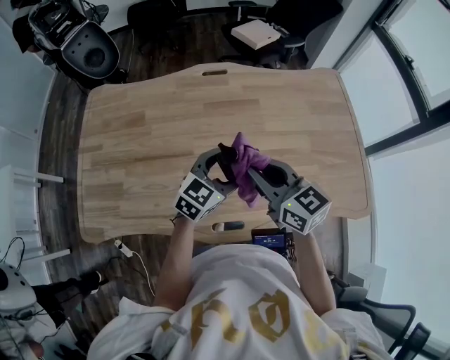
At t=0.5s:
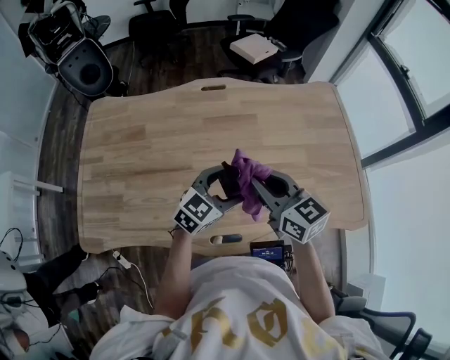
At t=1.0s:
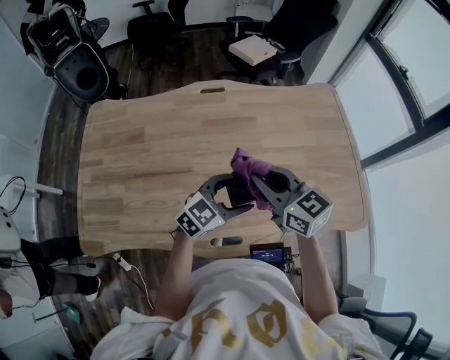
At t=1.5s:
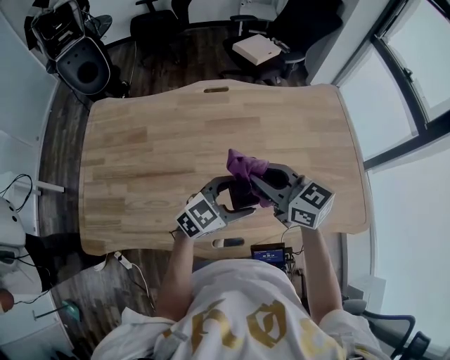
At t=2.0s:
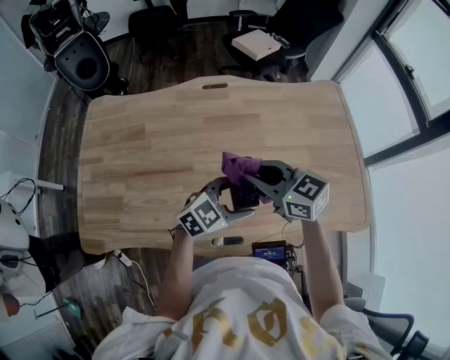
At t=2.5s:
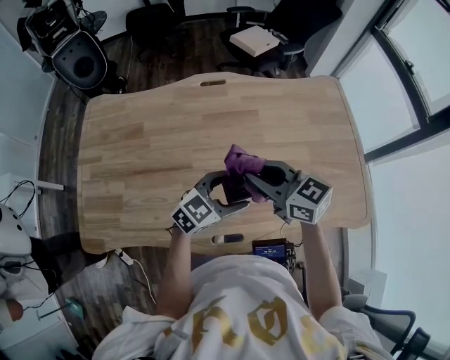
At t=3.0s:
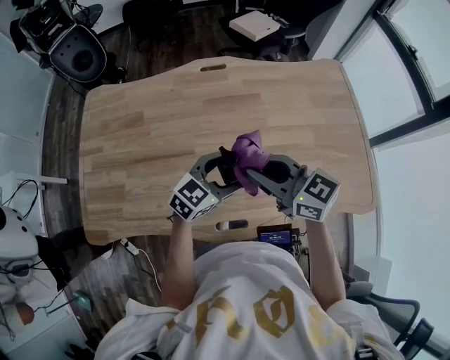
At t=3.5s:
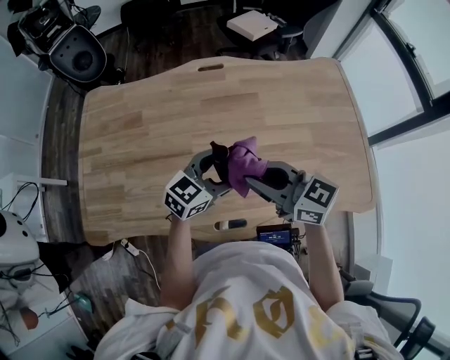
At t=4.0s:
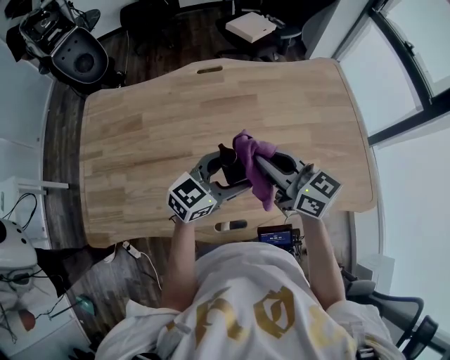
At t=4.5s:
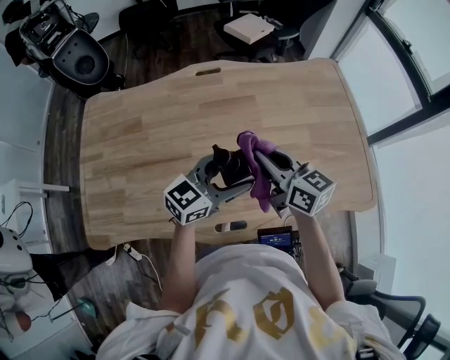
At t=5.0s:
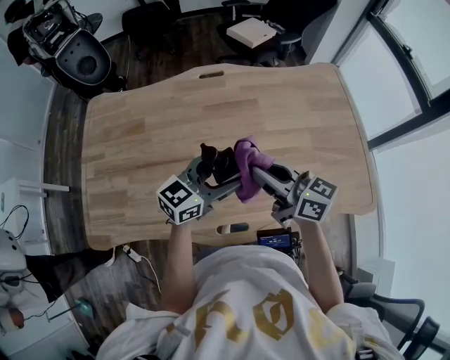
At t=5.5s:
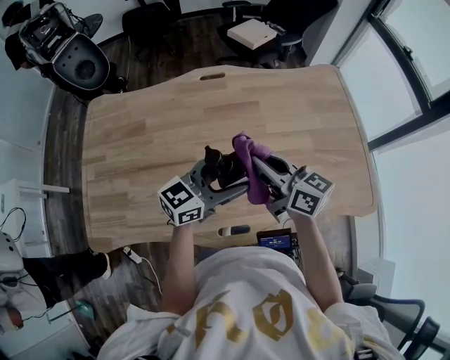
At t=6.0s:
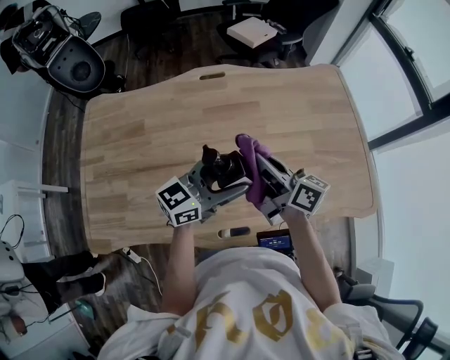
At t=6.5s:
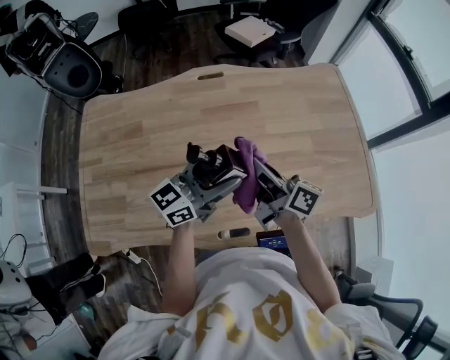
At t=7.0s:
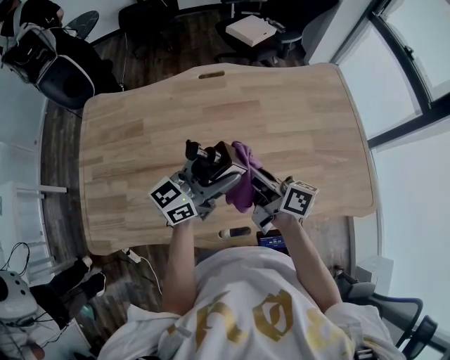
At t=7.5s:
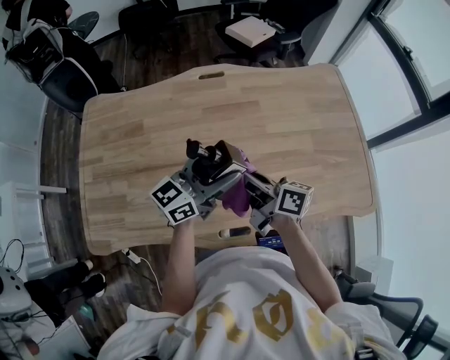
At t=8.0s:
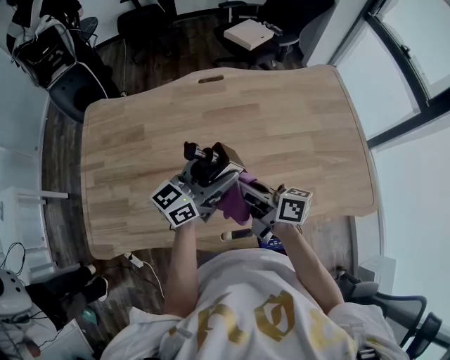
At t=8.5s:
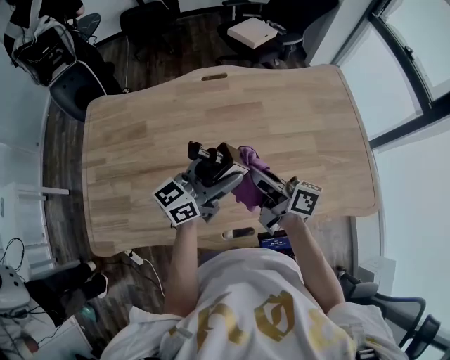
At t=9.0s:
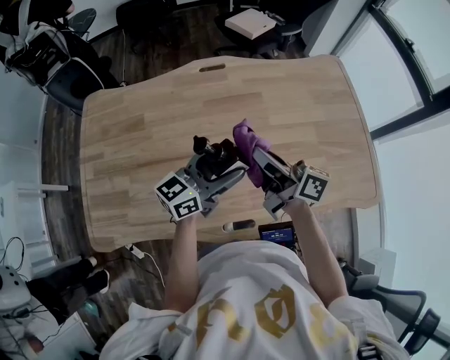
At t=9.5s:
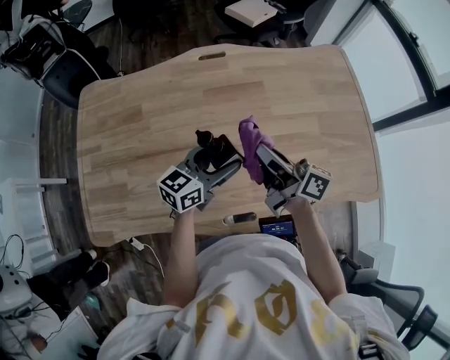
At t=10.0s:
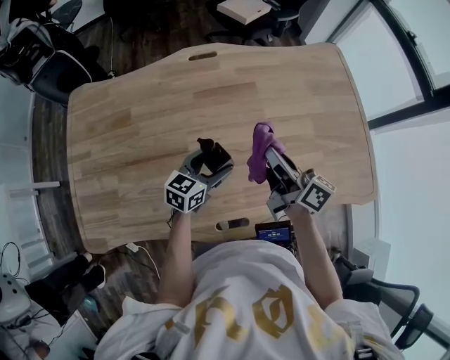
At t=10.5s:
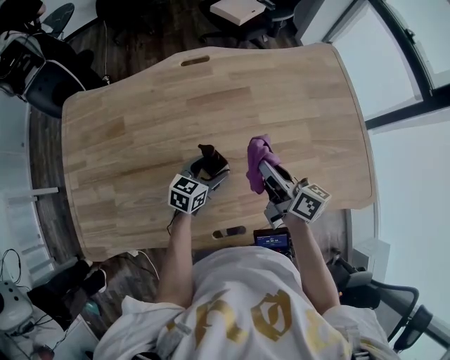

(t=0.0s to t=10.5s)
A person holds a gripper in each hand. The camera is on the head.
t=0.0s - t=2.0s: The left gripper moves approximately 5 cm, and rotates roughly 20 degrees.
t=2.0s - t=4.0s: The right gripper changes its angle by about 20 degrees.
t=4.0s - t=6.5s: The right gripper turns by some 40 degrees. The left gripper heads to the left, covering approximately 5 cm, and changes its angle by approximately 30 degrees.
t=8.5s - t=10.5s: The right gripper is displaced to the right and downward by roughly 10 cm, while the left gripper heads downward, covering some 25 cm, and tips its fingers downward by some 40 degrees.

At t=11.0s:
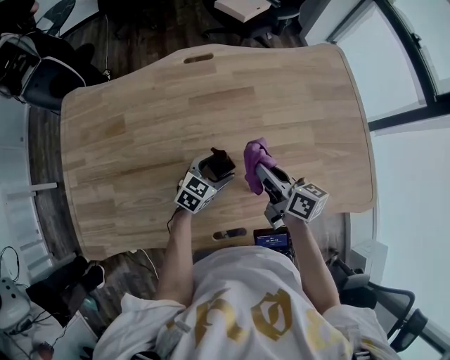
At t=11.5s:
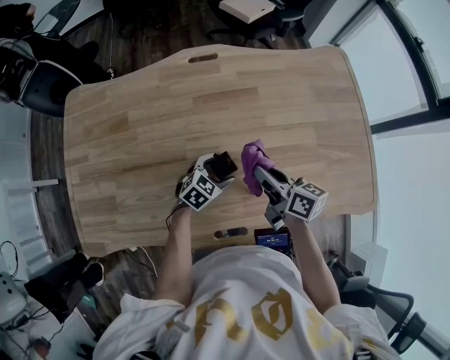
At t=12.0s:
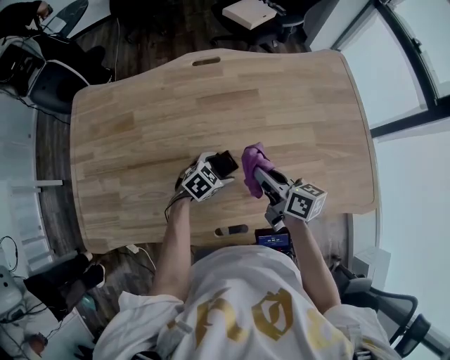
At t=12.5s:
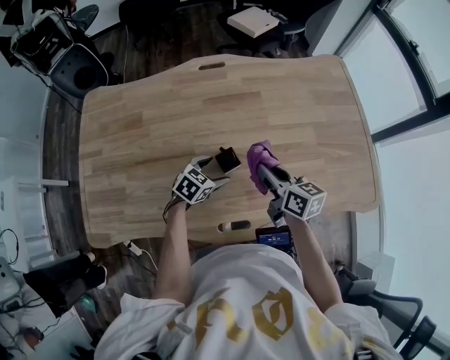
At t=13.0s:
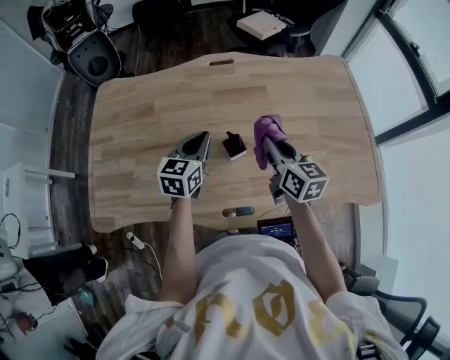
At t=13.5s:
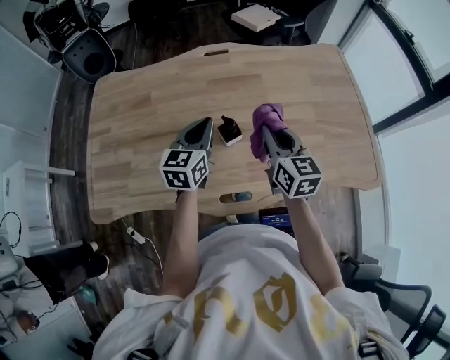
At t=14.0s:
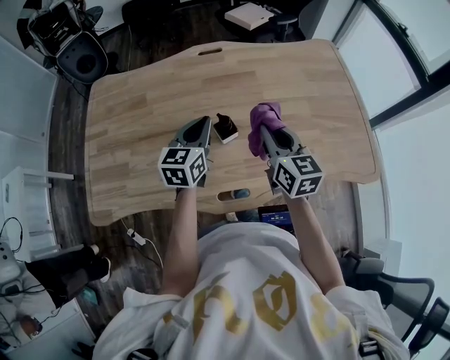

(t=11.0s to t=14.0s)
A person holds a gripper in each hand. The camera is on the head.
t=11.0s - t=12.5s: The left gripper ends up some 5 cm from where it was.
t=12.5s - t=14.0s: The right gripper is displaced upward by approximately 10 cm, and rotates some 30 degrees; the left gripper heads upward, covering approximately 20 cm, angles its fingers upward, by about 30 degrees, and closes up.

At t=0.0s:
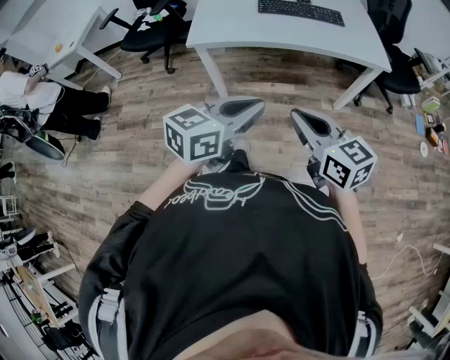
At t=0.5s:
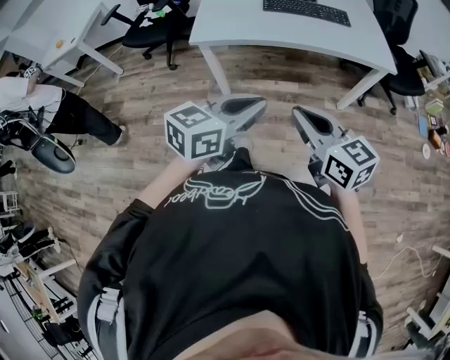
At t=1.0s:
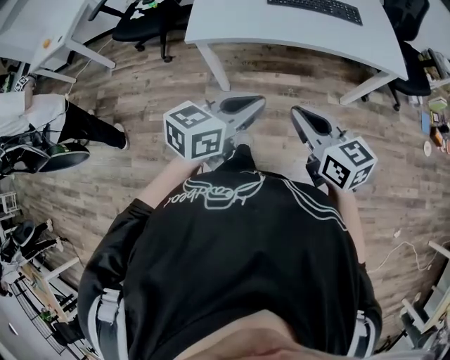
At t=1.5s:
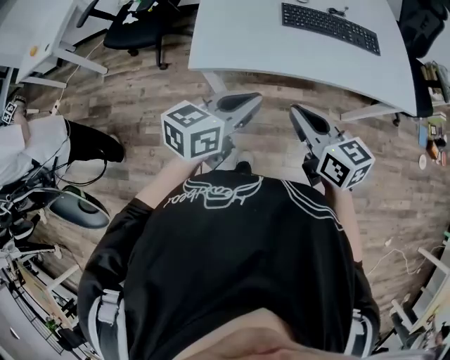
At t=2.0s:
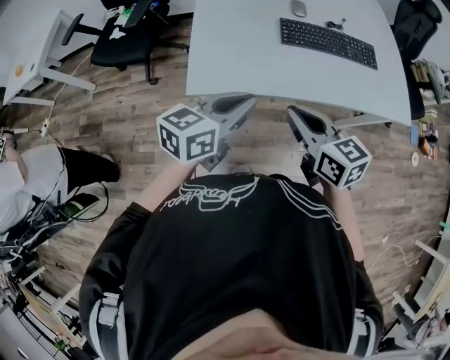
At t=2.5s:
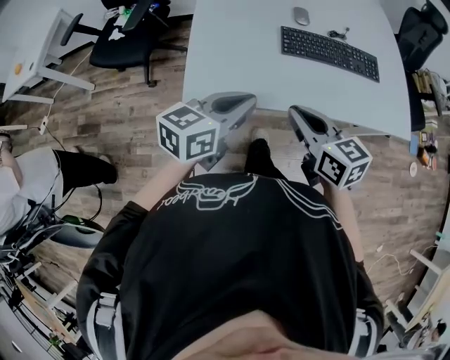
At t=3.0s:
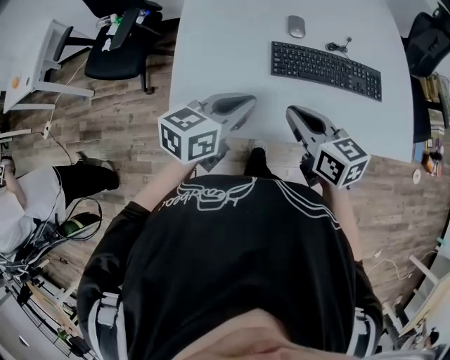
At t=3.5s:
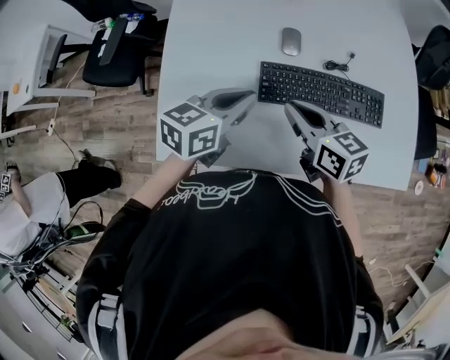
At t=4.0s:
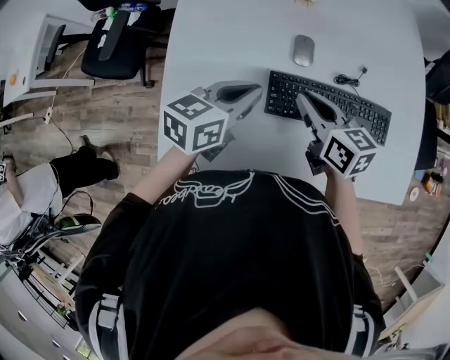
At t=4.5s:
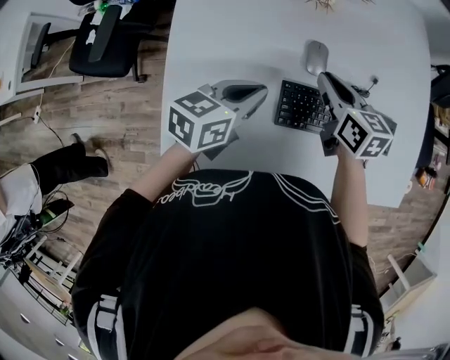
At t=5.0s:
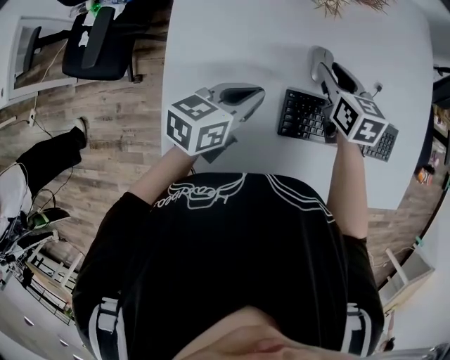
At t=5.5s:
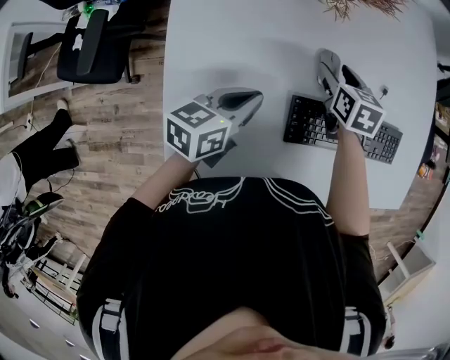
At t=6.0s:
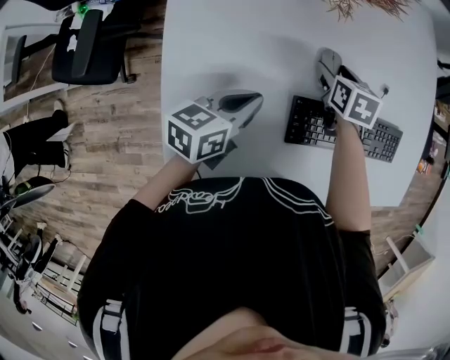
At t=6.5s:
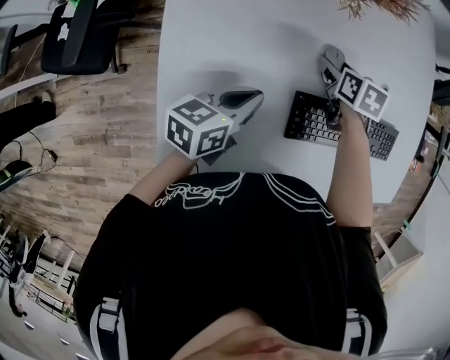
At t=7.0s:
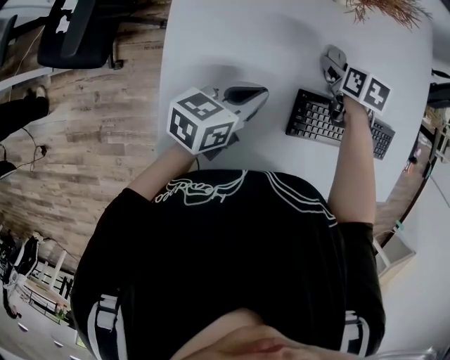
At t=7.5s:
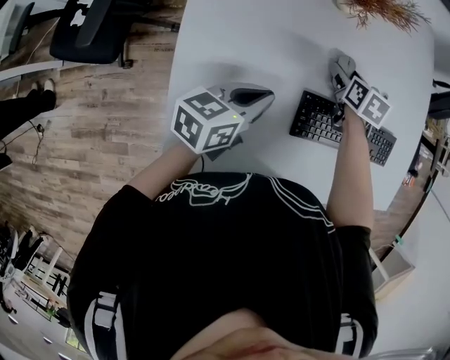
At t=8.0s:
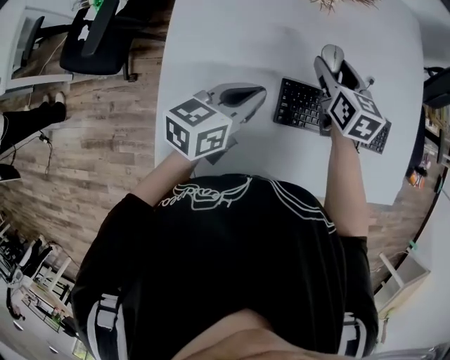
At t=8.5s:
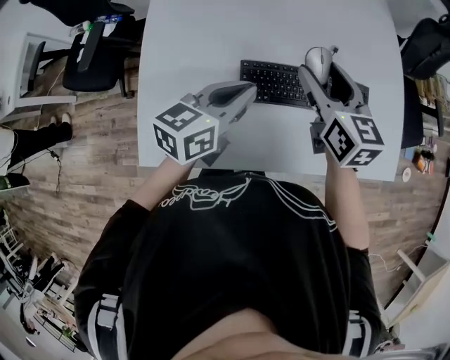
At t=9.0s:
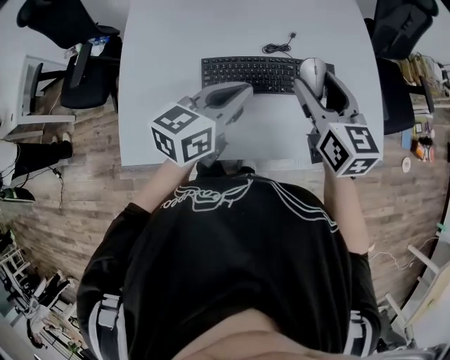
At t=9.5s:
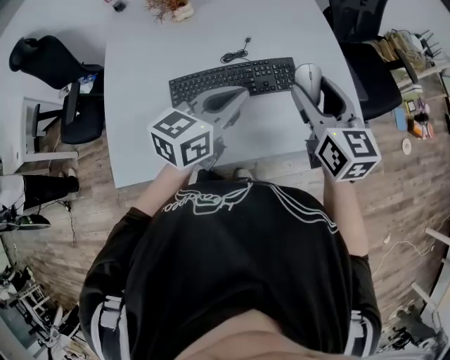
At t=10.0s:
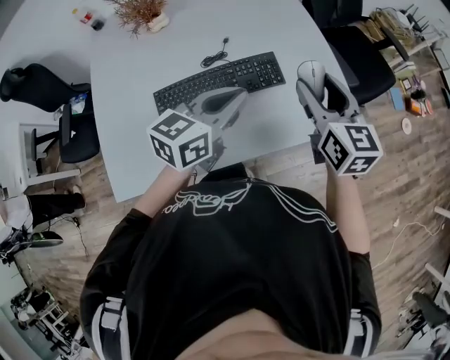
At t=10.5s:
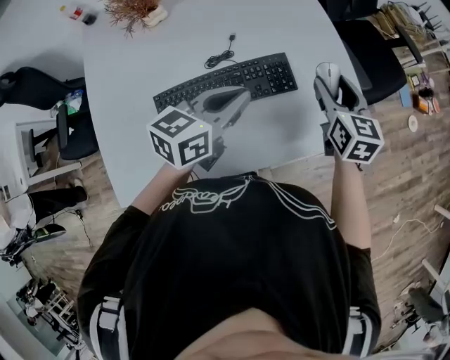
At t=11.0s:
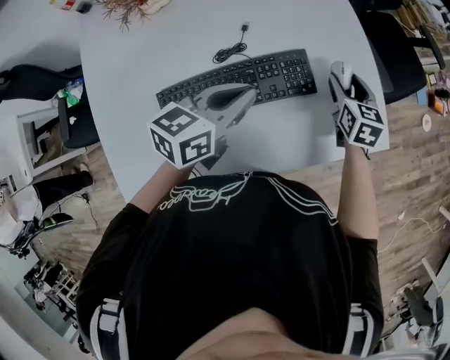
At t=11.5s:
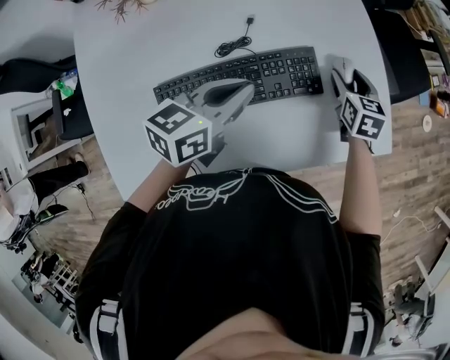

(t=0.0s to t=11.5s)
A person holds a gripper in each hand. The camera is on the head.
t=0.0s - t=2.0s: Both grippers move forward and to the left, approximately 40 cm.
t=2.0s - t=4.0s: Both grippers move forward, about 35 cm.
t=4.0s - t=6.0s: The right gripper travels forward and downward by some 20 cm, rotates roughly 40 degrees, and opens its fingers, while the left gripper moves downward and to the left, approximately 10 cm.
t=6.0s - t=7.5s: The grippers move only a little.
t=7.5s - t=9.5s: The right gripper goes some 50 cm to the right, upward and backward, and points its fingers approximately 40 degrees further upward, while the left gripper heads to the right and upward, covering some 40 cm, and turns by some 20 degrees.
t=9.5s - t=11.5s: The right gripper shifts about 30 cm downward and forward, and changes its angle by about 30 degrees. Meanwhile the left gripper shifts roughly 15 cm forward and downward.

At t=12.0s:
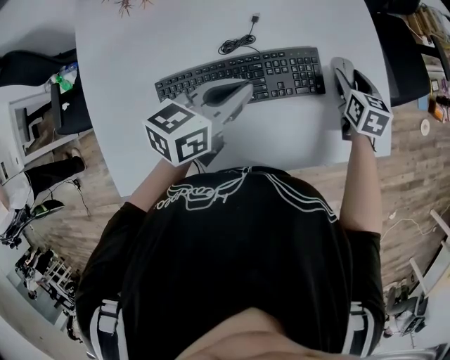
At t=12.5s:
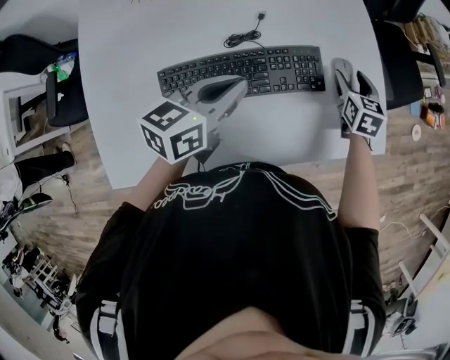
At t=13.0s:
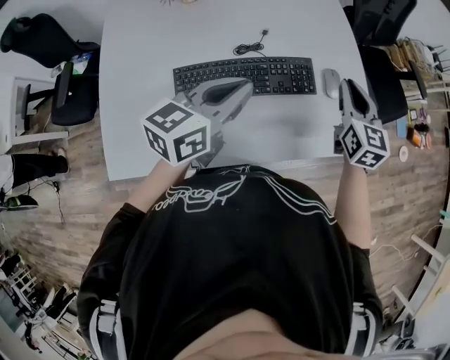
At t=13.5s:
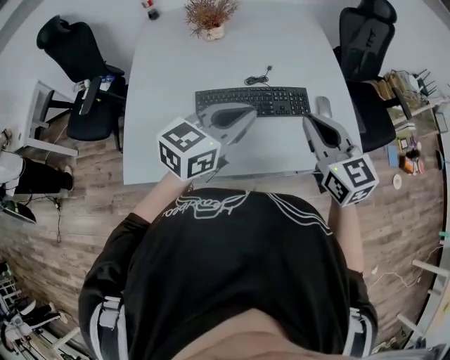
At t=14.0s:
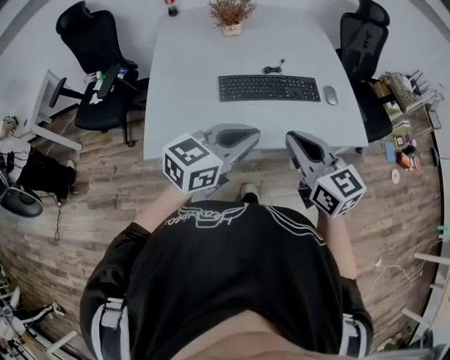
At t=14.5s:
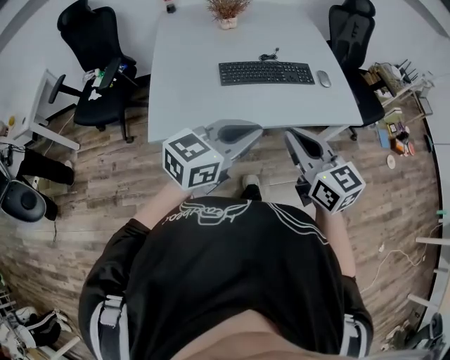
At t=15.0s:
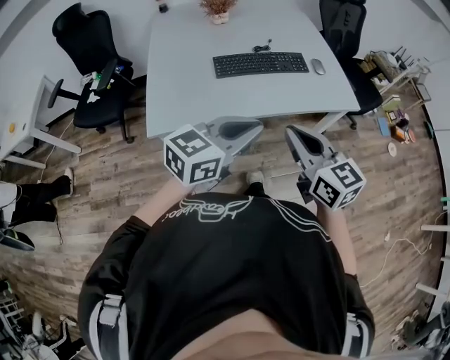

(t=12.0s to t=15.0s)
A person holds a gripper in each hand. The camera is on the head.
t=12.0s - t=13.5s: The left gripper goes roughly 25 cm backward and upward, and swivels some 30 degrees. Meanwhile the right gripper is displaced upward and backward by roughly 40 cm, angles its fingers upward, by approximately 30 degrees, and closes its fingers.
t=13.5s - t=15.0s: Both grippers travel together backward, some 30 cm.
